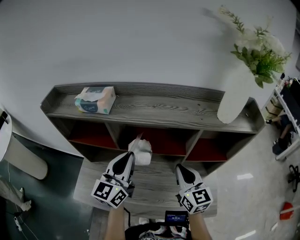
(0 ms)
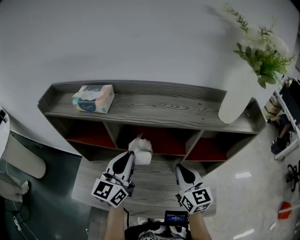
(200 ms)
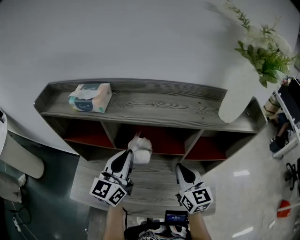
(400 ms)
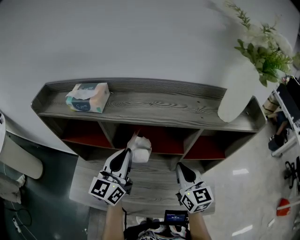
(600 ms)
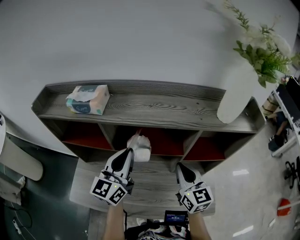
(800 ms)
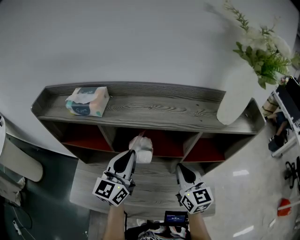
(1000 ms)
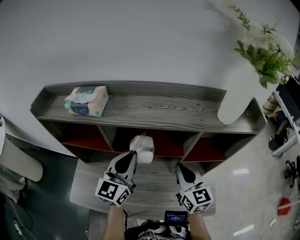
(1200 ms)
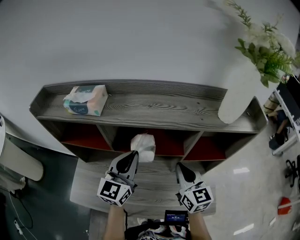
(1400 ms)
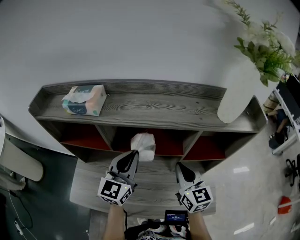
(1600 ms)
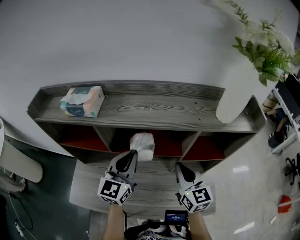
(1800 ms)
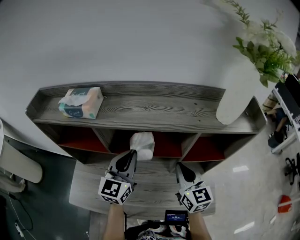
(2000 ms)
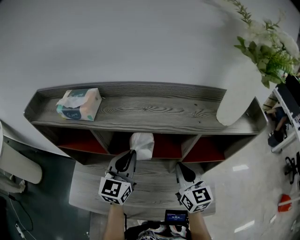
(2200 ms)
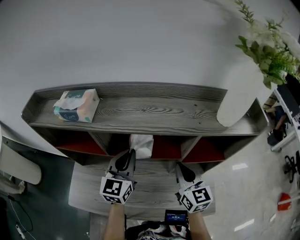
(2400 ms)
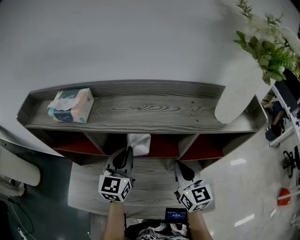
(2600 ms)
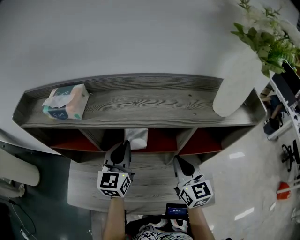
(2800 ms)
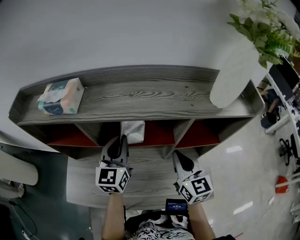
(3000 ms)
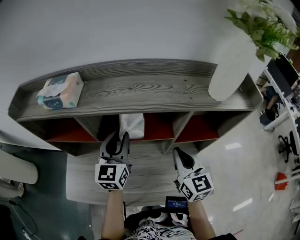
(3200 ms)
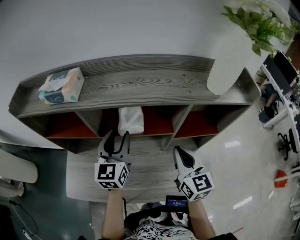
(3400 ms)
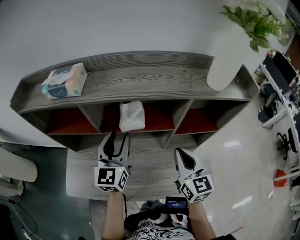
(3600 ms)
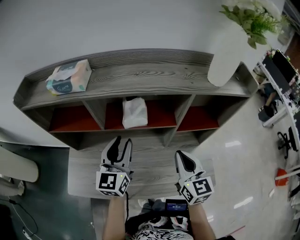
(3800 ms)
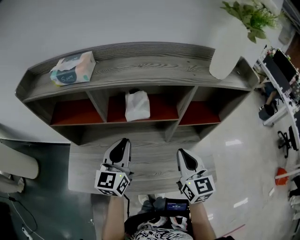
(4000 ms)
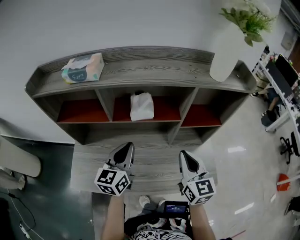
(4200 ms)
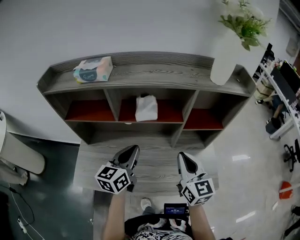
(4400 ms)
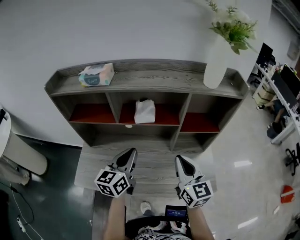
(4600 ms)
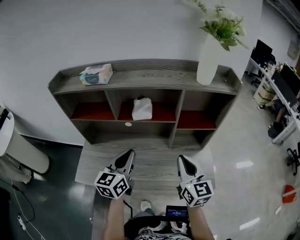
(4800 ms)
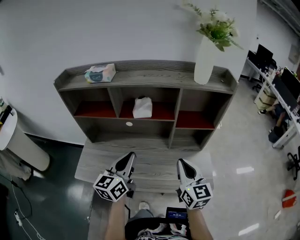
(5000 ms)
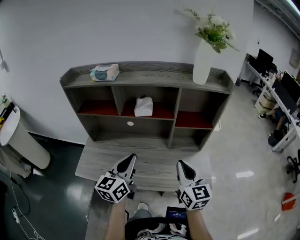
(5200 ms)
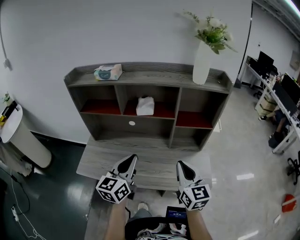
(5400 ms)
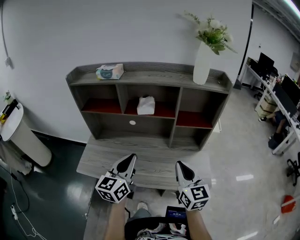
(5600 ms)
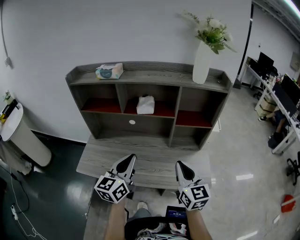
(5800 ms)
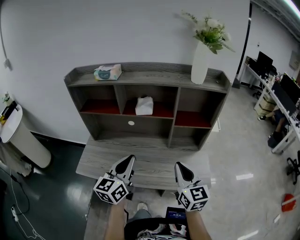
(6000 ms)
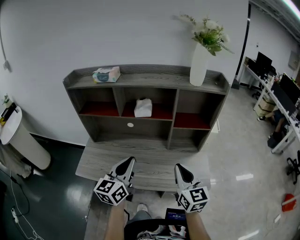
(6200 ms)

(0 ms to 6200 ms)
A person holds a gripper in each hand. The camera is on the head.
0 ms - 1600 ms: The left gripper changes place by approximately 5 cm.
1600 ms - 3200 ms: The left gripper shifts by approximately 5 cm.
3200 ms - 4600 ms: Both grippers travel together backward, about 15 cm. The left gripper opens, then closes again.
4600 ms - 6200 ms: The grippers both shift backward by some 10 cm.

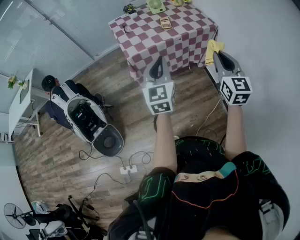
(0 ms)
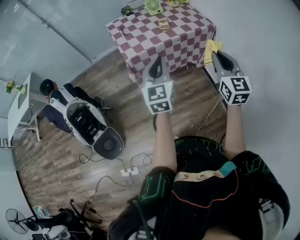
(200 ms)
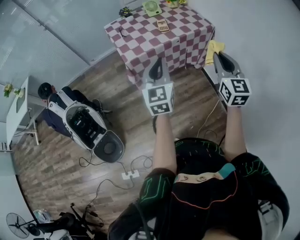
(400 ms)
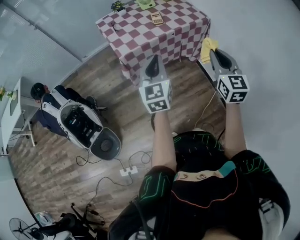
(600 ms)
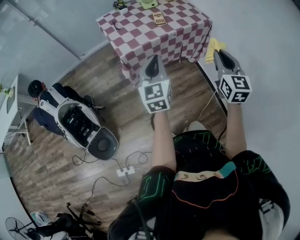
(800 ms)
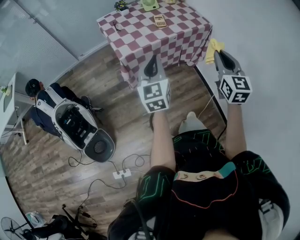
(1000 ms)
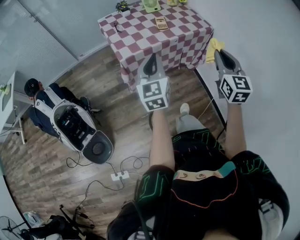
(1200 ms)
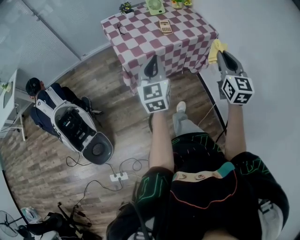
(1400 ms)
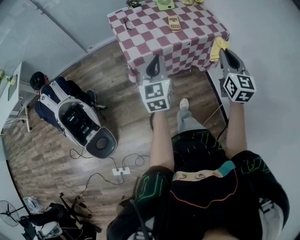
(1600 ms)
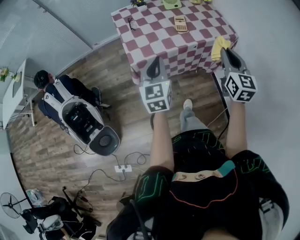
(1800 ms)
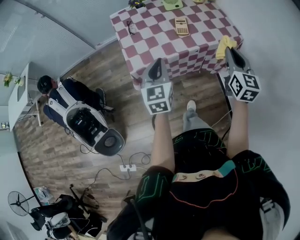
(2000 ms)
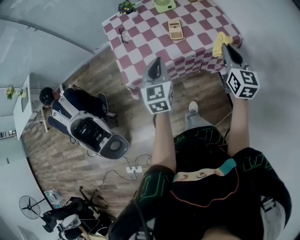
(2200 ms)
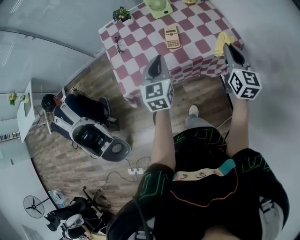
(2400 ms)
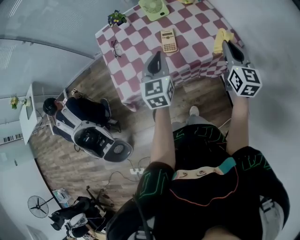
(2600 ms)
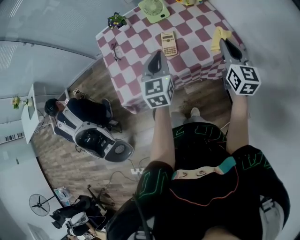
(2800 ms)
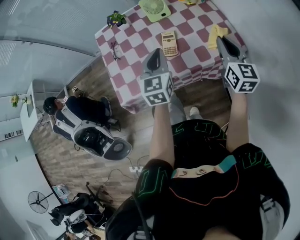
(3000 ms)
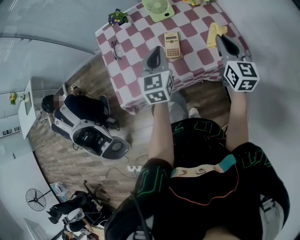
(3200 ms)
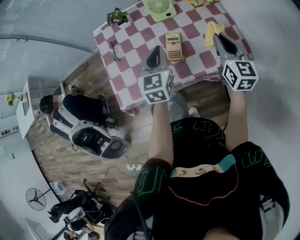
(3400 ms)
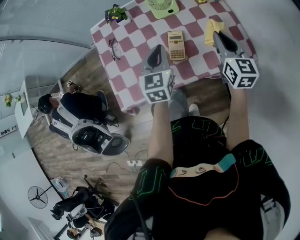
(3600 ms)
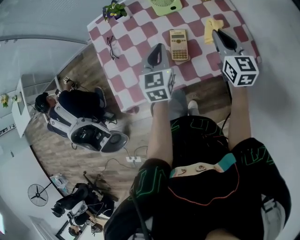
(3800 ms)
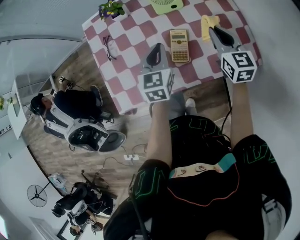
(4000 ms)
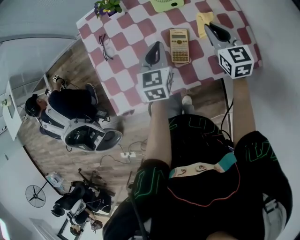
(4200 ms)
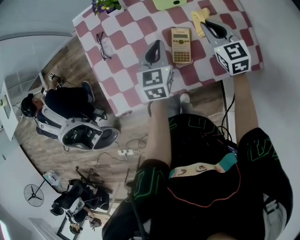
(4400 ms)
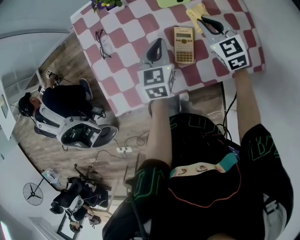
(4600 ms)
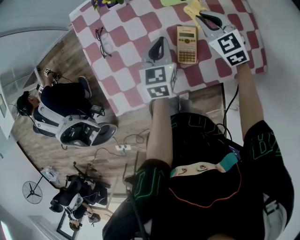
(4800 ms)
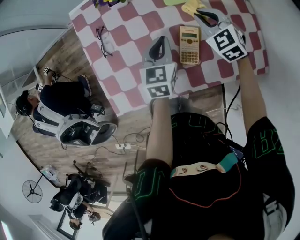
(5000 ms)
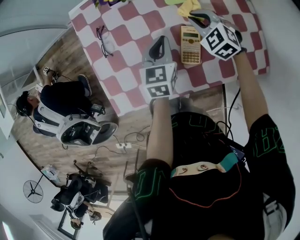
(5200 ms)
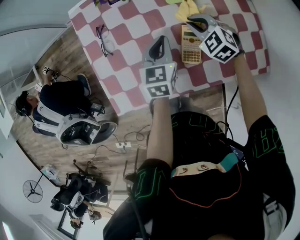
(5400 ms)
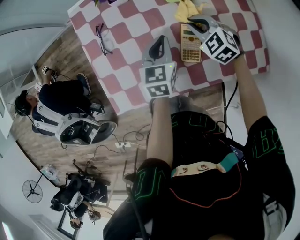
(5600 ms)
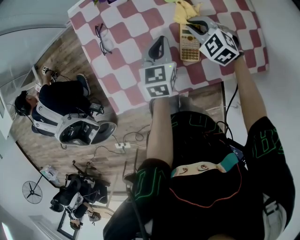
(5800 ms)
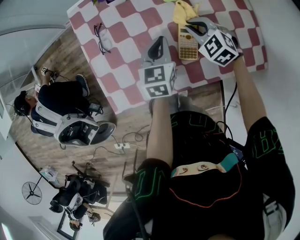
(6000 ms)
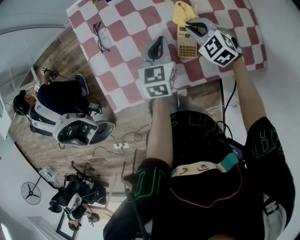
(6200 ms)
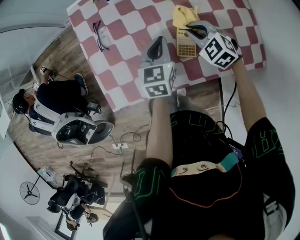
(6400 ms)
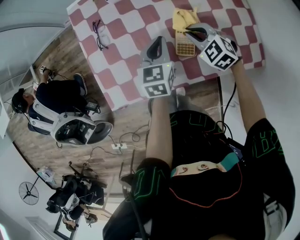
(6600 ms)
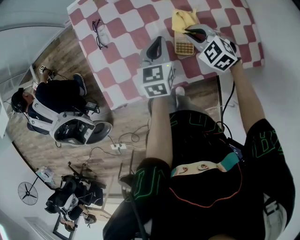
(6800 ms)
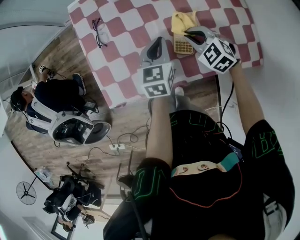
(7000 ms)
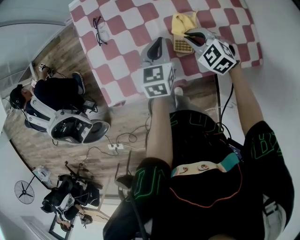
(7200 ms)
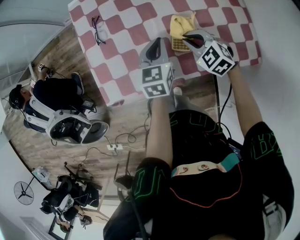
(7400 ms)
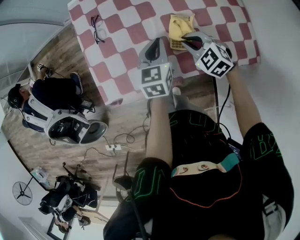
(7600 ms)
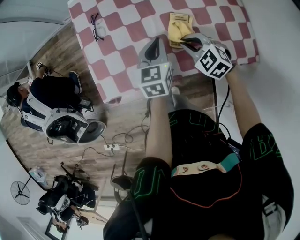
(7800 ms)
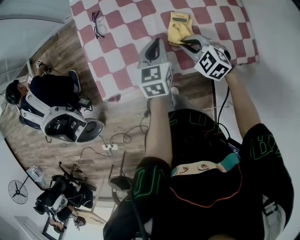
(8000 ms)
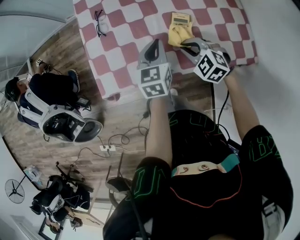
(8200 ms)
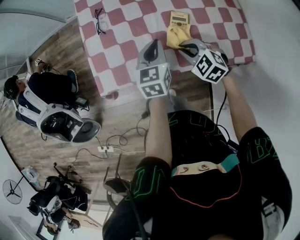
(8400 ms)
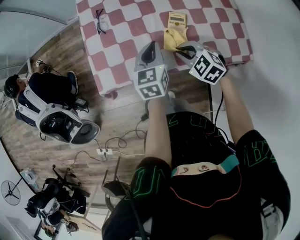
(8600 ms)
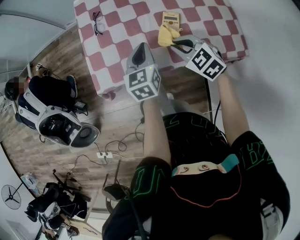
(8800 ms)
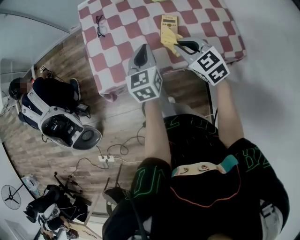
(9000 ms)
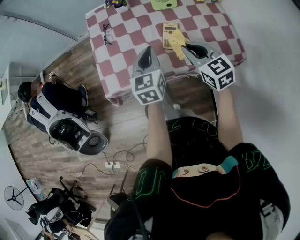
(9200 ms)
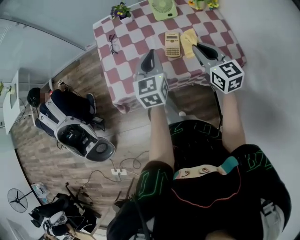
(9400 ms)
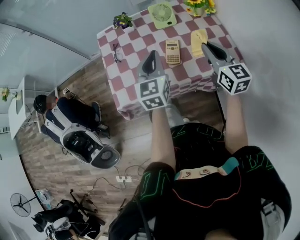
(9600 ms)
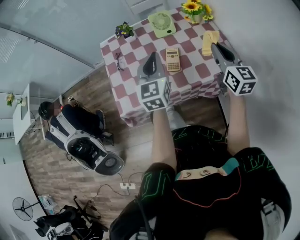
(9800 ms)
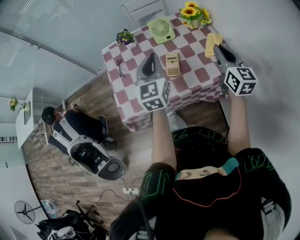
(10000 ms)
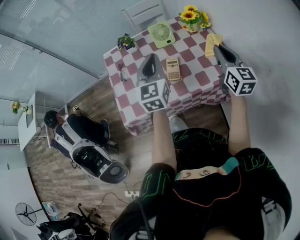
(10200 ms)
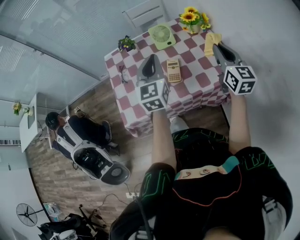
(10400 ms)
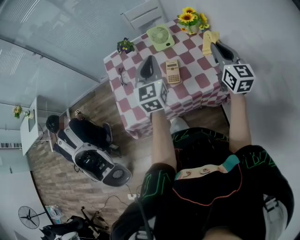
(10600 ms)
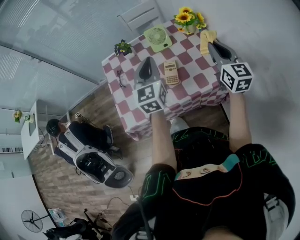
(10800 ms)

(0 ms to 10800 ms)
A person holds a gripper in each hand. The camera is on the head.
0 ms - 1600 ms: The right gripper heads forward, covering some 15 cm, while the left gripper shifts approximately 15 cm forward, to the left and downward.
1600 ms - 3000 ms: The left gripper travels forward and to the right by some 35 cm. Meanwhile the right gripper goes roughly 35 cm forward.
3000 ms - 4600 ms: The left gripper heads forward and downward, covering roughly 20 cm. Meanwhile the right gripper heads forward, to the left and downward, covering roughly 25 cm, and changes its angle by some 40 degrees.
4600 ms - 6200 ms: The right gripper heads downward and to the left, covering approximately 10 cm, and rotates roughly 30 degrees.
6200 ms - 7800 ms: The left gripper heads backward, covering approximately 5 cm, while the right gripper travels backward by about 10 cm.
7800 ms - 9200 ms: The two grippers go some 15 cm upward and backward. The right gripper rotates roughly 40 degrees.
9200 ms - 10800 ms: The left gripper is displaced upward and forward by about 15 cm, while the right gripper shifts about 20 cm to the right and upward, and swivels approximately 40 degrees.

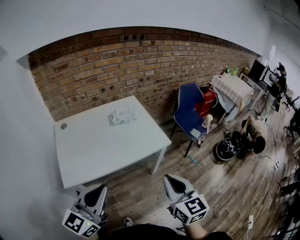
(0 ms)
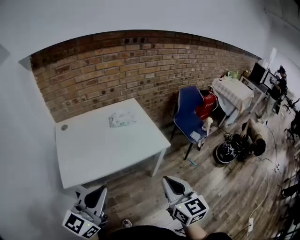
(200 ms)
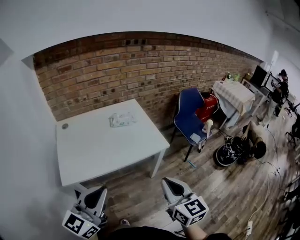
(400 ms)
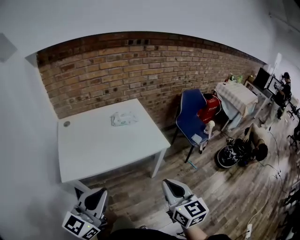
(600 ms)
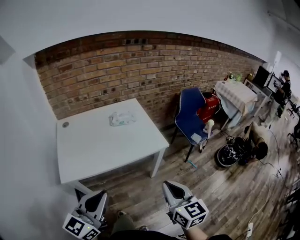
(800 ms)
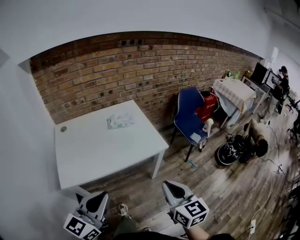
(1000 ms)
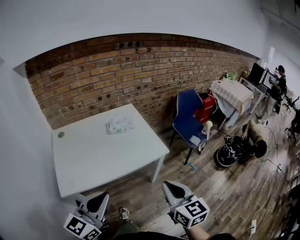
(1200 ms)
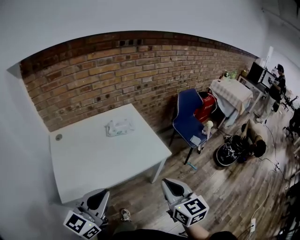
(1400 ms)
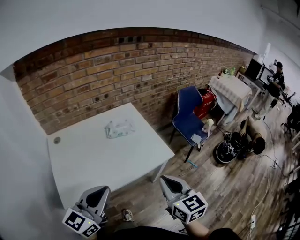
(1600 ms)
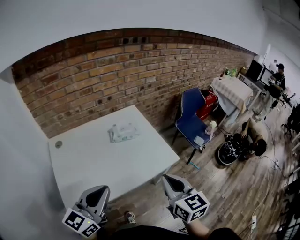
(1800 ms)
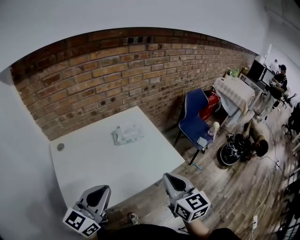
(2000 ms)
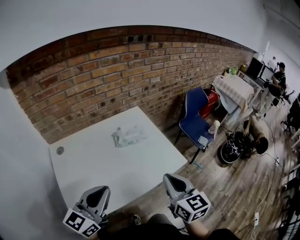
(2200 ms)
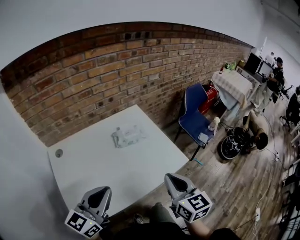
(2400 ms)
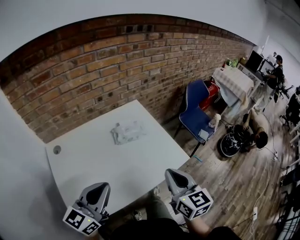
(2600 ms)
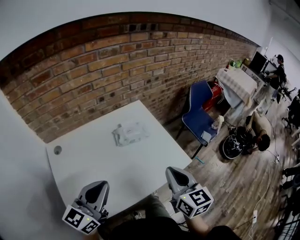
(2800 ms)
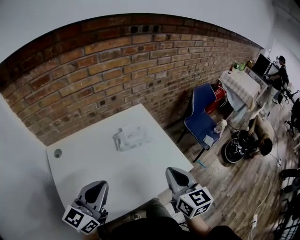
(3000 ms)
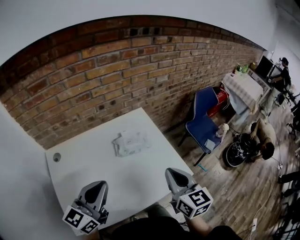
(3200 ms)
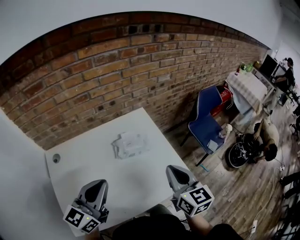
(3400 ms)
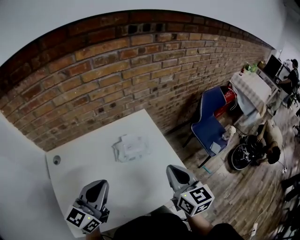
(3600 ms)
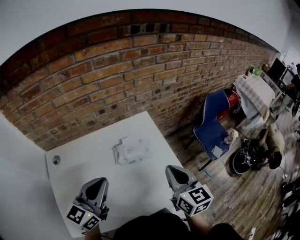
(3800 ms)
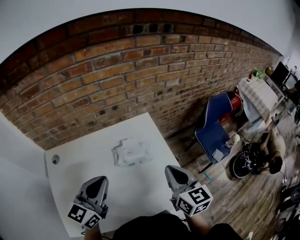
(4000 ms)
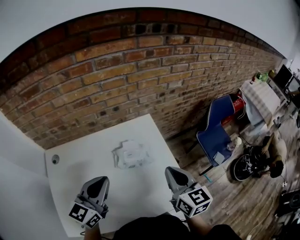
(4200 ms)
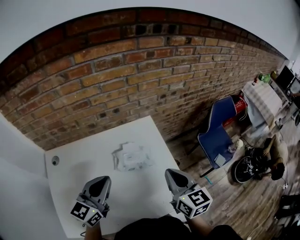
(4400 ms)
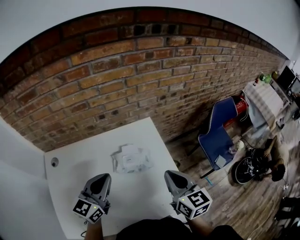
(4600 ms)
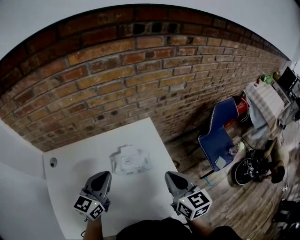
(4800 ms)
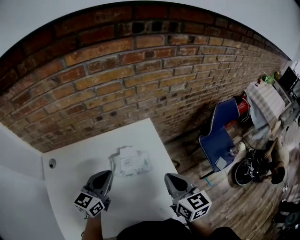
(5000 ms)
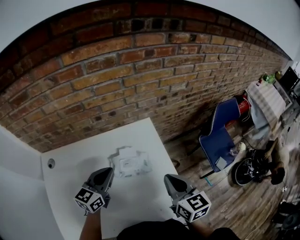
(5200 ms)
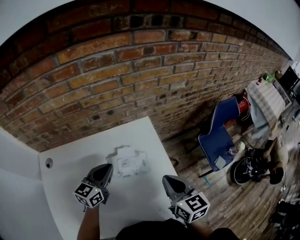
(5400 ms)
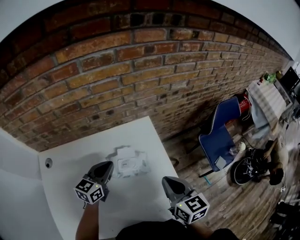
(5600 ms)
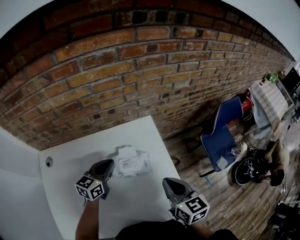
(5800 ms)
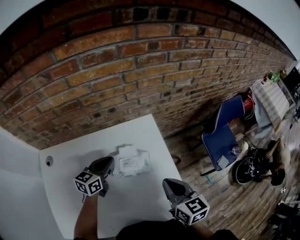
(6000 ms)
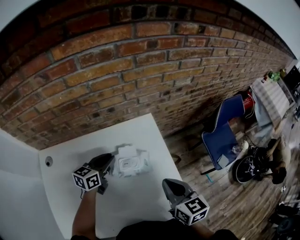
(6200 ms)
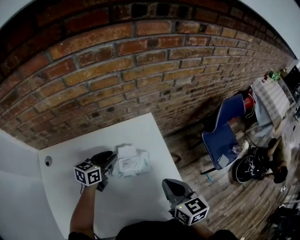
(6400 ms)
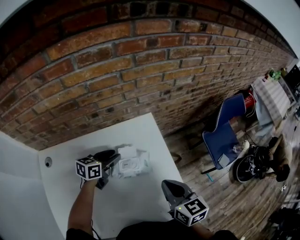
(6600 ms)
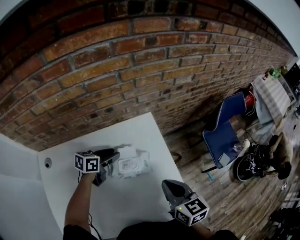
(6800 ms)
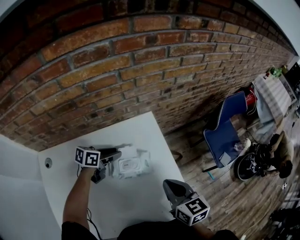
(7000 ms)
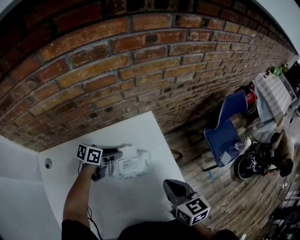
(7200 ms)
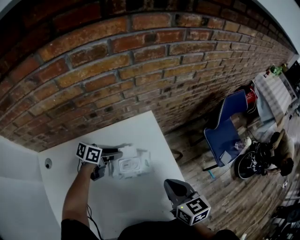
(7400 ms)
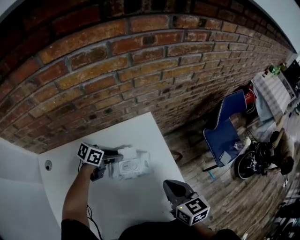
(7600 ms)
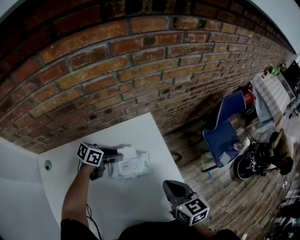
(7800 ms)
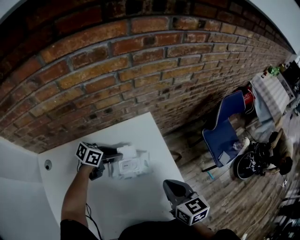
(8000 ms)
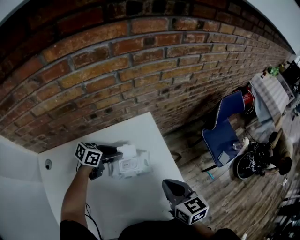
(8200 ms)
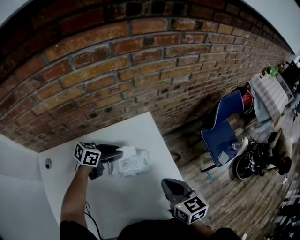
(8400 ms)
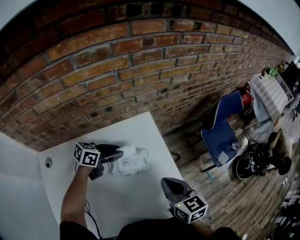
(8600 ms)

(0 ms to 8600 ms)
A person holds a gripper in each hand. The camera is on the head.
0 ms - 1400 ms: Both grippers move forward, roughly 5 cm.
1400 ms - 2800 ms: The grippers both shift forward and to the left by some 25 cm.
2800 ms - 4400 ms: Both grippers travel together forward, some 20 cm.
4400 ms - 5800 ms: The left gripper goes some 20 cm forward and downward, while the right gripper moves downward, about 5 cm.
5800 ms - 7200 ms: The left gripper goes roughly 10 cm downward and forward, swivels roughly 40 degrees, and opens its fingers.
7200 ms - 8600 ms: The left gripper is displaced upward by roughly 5 cm.
